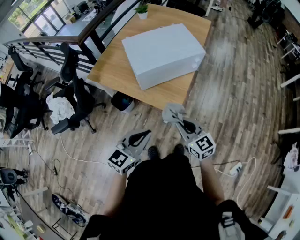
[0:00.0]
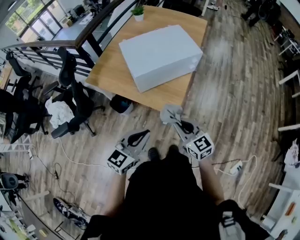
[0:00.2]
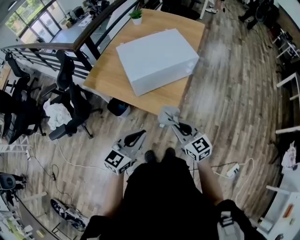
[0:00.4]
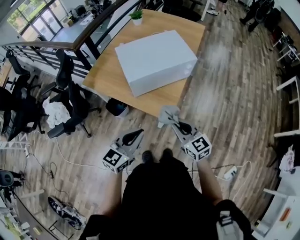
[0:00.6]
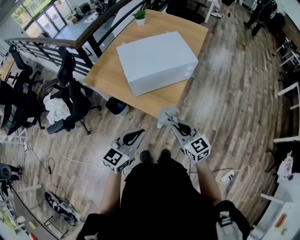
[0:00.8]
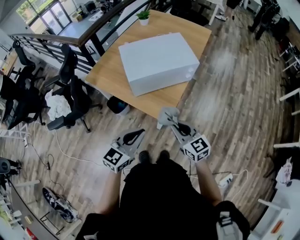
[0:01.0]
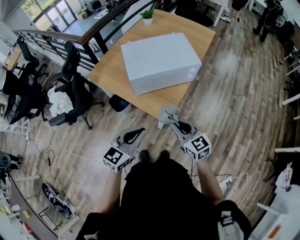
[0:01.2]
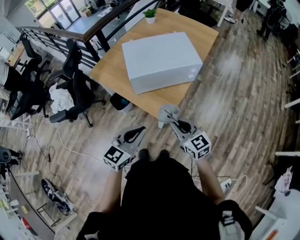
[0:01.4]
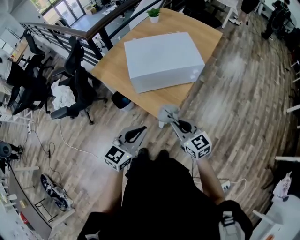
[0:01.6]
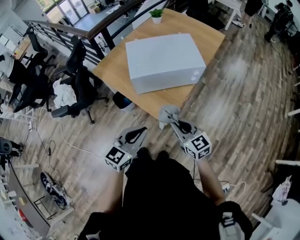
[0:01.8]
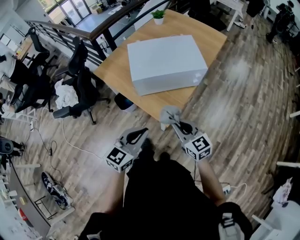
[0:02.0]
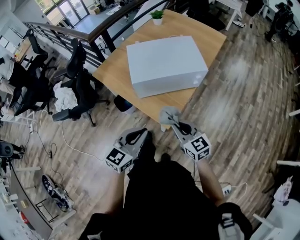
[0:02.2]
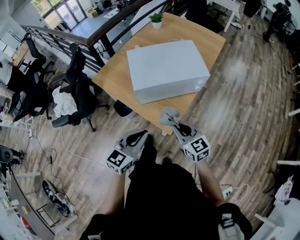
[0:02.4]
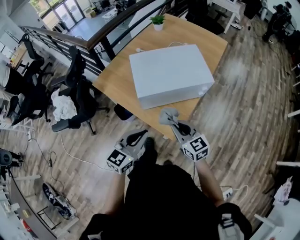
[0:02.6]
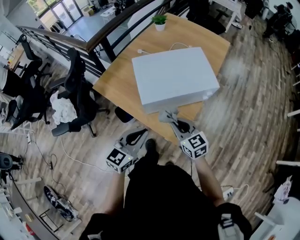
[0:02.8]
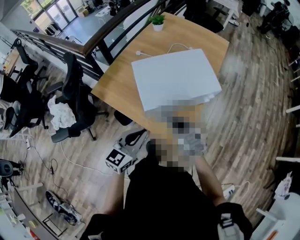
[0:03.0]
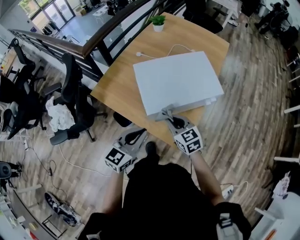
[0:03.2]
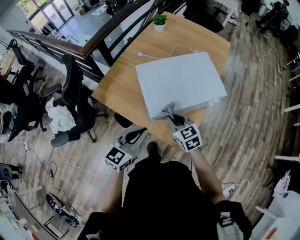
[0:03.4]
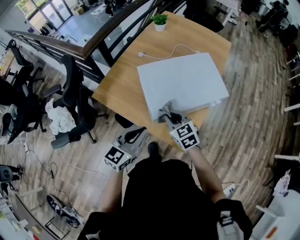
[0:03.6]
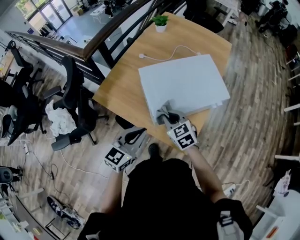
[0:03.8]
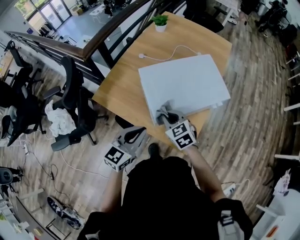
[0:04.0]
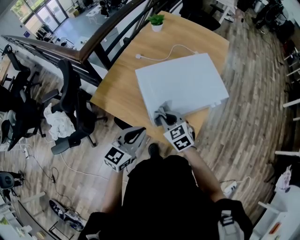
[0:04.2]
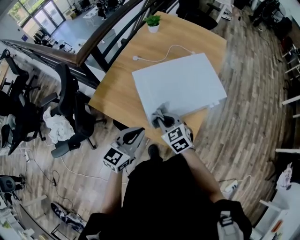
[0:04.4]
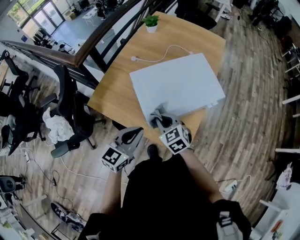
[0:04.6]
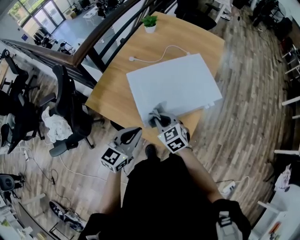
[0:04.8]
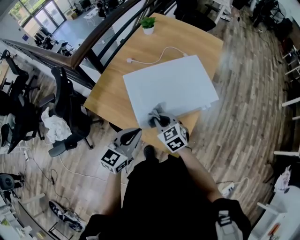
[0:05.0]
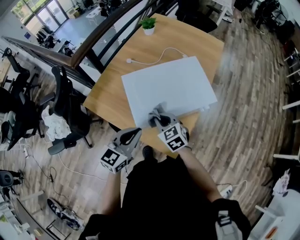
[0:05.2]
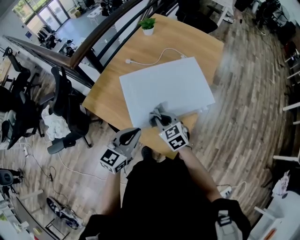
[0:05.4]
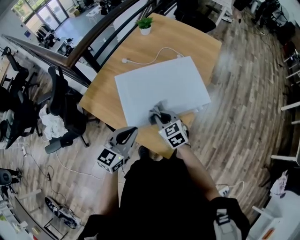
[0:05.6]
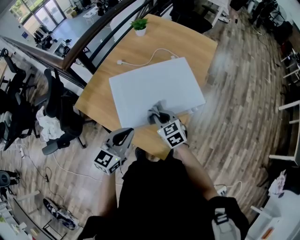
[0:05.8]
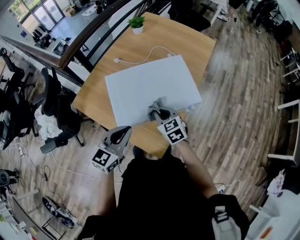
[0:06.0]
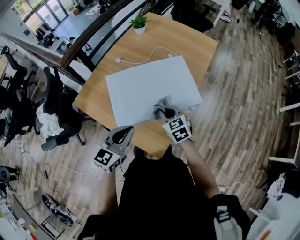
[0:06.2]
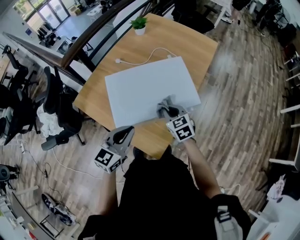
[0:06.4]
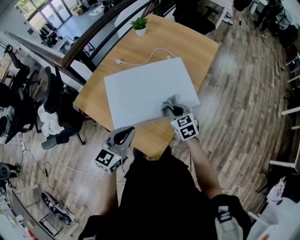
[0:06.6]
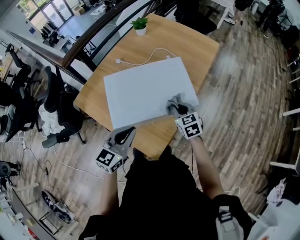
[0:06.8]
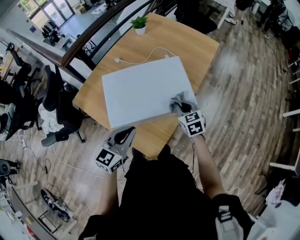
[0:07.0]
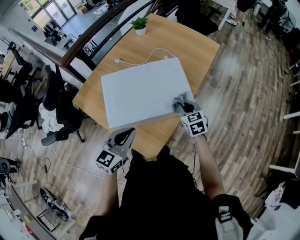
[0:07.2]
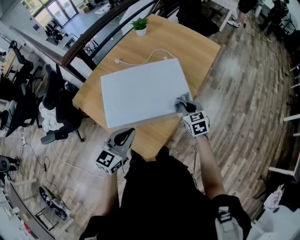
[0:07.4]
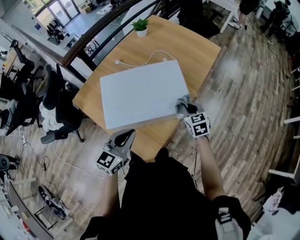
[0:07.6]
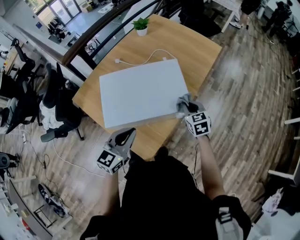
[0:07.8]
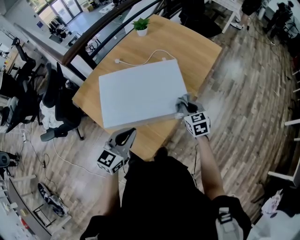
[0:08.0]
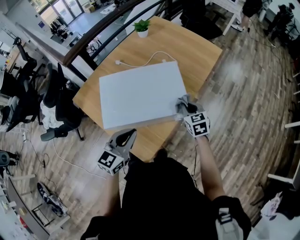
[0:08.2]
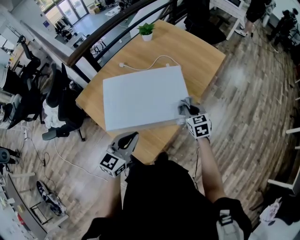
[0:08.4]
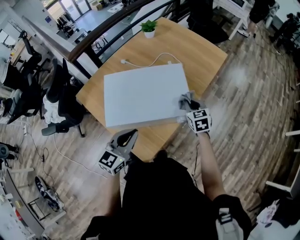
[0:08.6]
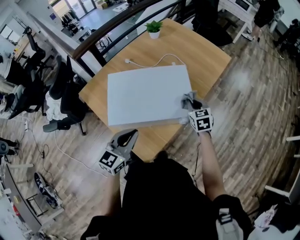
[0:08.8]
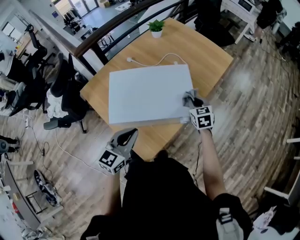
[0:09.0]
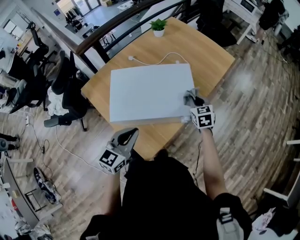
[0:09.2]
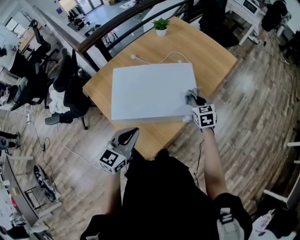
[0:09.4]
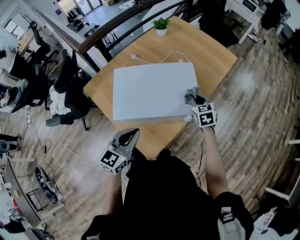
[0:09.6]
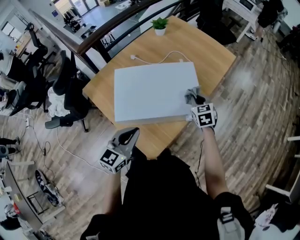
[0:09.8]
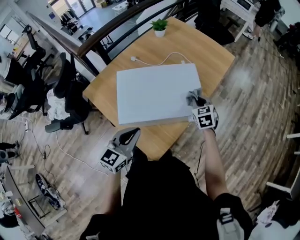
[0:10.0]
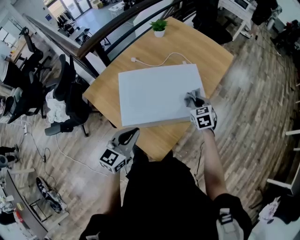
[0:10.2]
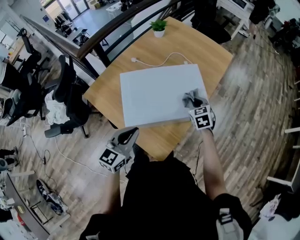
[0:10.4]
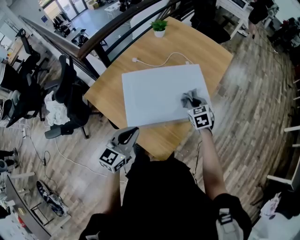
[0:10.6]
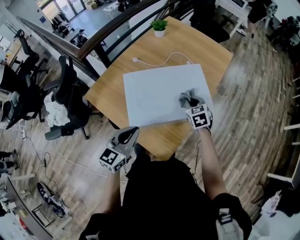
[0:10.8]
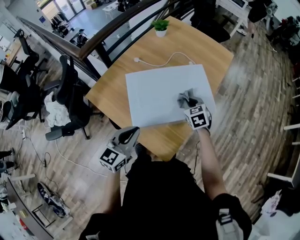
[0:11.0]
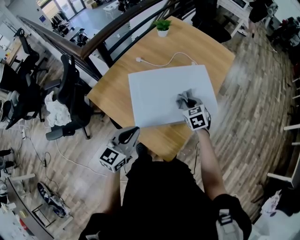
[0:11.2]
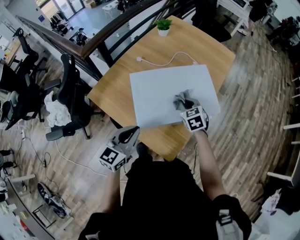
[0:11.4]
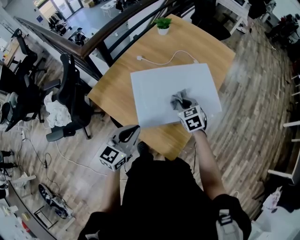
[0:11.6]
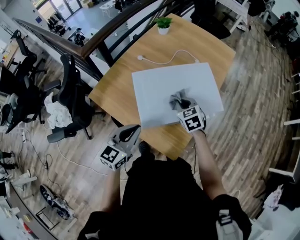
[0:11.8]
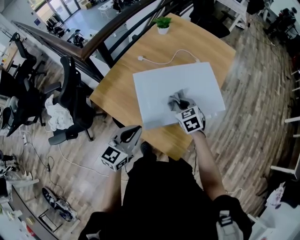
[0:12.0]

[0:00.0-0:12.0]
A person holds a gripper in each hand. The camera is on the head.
0:00.0 to 0:01.6: The two grippers go approximately 10 cm to the right.
0:01.6 to 0:03.0: Both grippers move forward and to the left, about 20 cm.
0:03.0 to 0:04.4: The right gripper goes roughly 10 cm to the left and forward, while the left gripper shifts roughly 10 cm forward and to the left.
0:04.4 to 0:06.0: The two grippers go about 15 cm to the right.
0:06.0 to 0:07.6: The left gripper travels to the right by about 10 cm; the right gripper is displaced to the right by some 20 cm.
0:07.6 to 0:09.0: The right gripper shifts approximately 5 cm forward.
0:09.0 to 0:10.4: Both grippers move to the left, about 10 cm.
0:10.4 to 0:12.0: The right gripper is displaced to the left by roughly 15 cm. Meanwhile the left gripper heads to the left, covering approximately 10 cm.

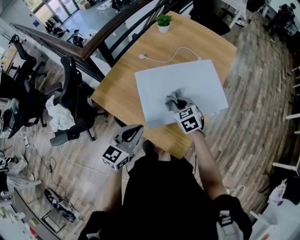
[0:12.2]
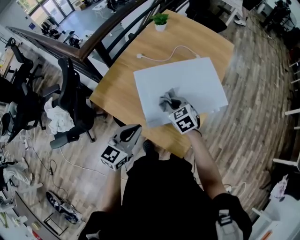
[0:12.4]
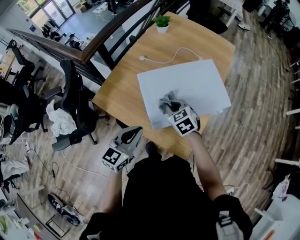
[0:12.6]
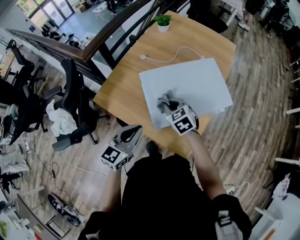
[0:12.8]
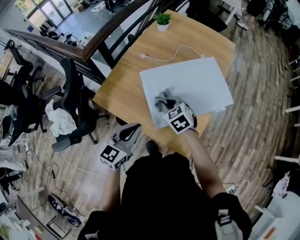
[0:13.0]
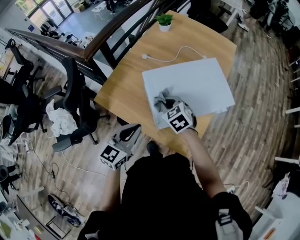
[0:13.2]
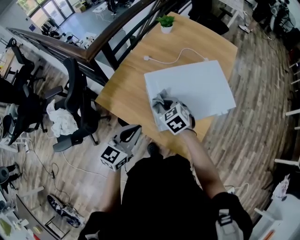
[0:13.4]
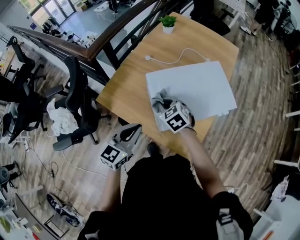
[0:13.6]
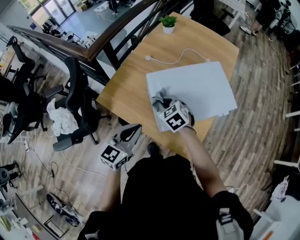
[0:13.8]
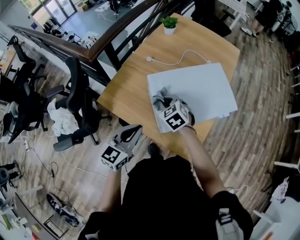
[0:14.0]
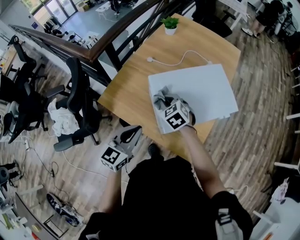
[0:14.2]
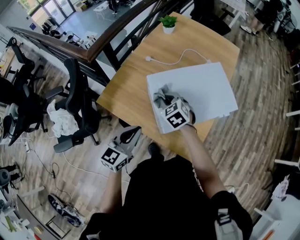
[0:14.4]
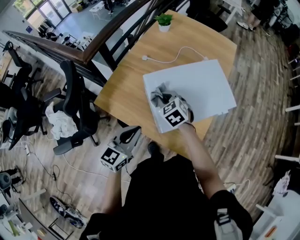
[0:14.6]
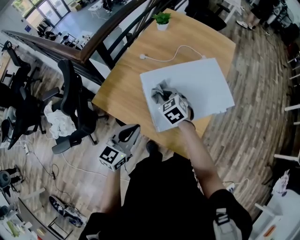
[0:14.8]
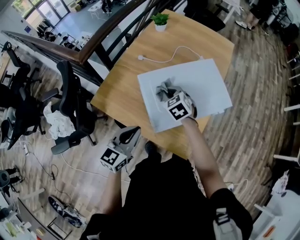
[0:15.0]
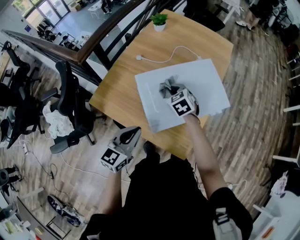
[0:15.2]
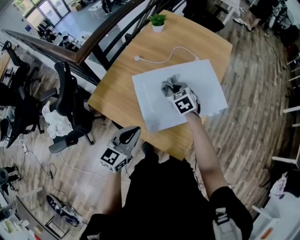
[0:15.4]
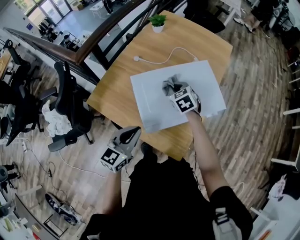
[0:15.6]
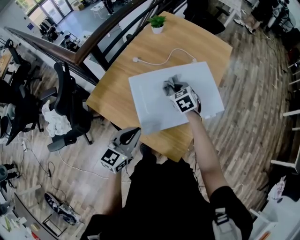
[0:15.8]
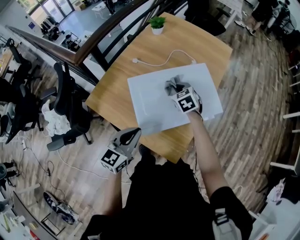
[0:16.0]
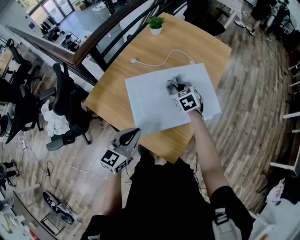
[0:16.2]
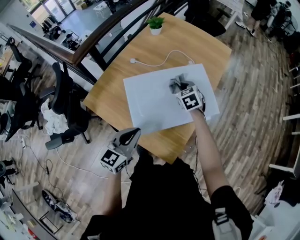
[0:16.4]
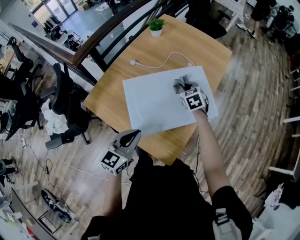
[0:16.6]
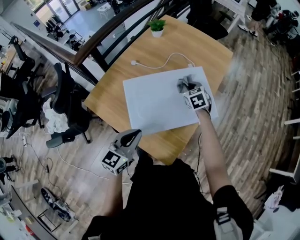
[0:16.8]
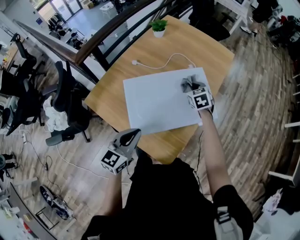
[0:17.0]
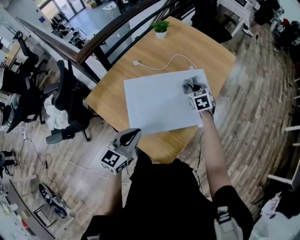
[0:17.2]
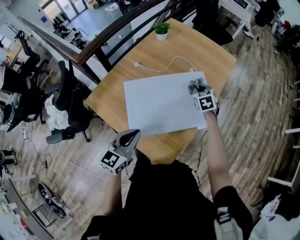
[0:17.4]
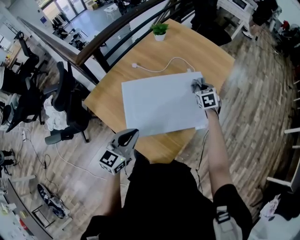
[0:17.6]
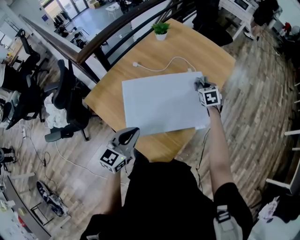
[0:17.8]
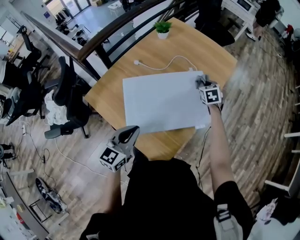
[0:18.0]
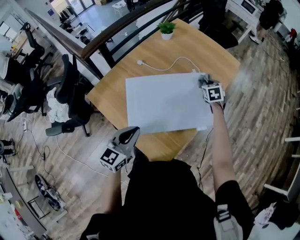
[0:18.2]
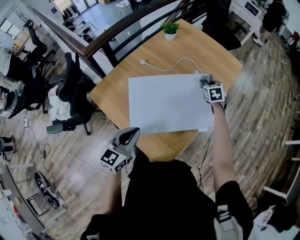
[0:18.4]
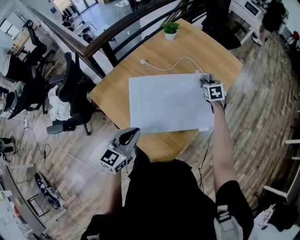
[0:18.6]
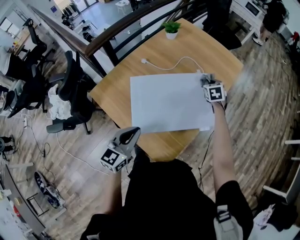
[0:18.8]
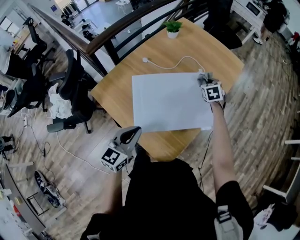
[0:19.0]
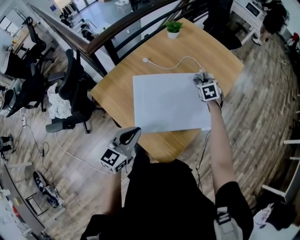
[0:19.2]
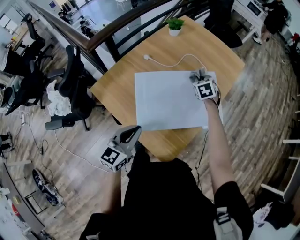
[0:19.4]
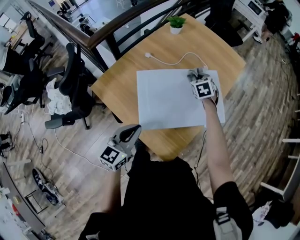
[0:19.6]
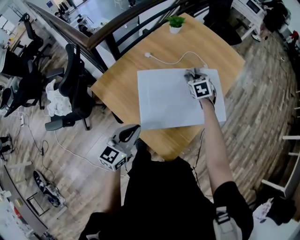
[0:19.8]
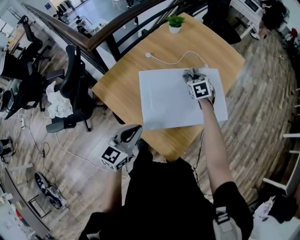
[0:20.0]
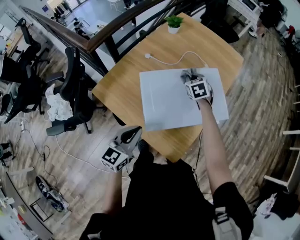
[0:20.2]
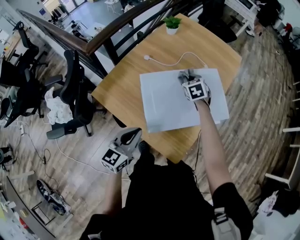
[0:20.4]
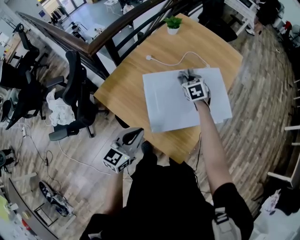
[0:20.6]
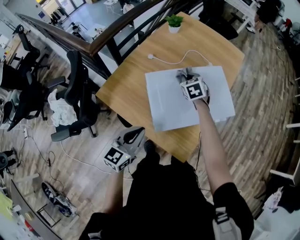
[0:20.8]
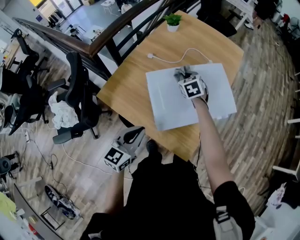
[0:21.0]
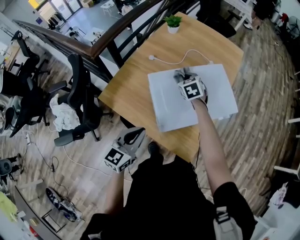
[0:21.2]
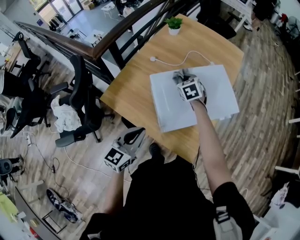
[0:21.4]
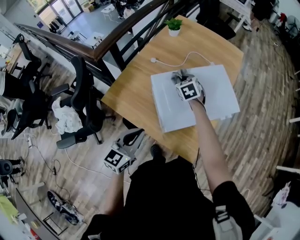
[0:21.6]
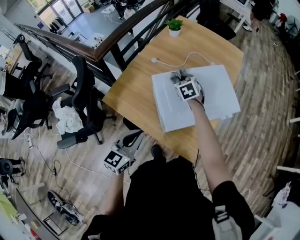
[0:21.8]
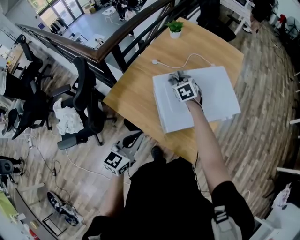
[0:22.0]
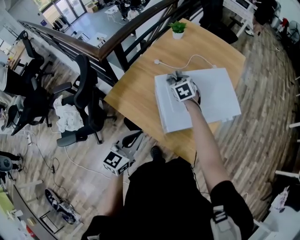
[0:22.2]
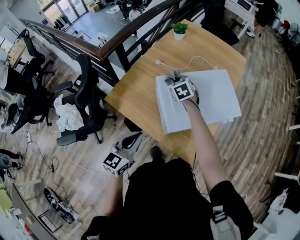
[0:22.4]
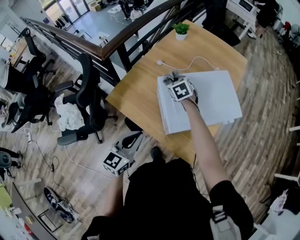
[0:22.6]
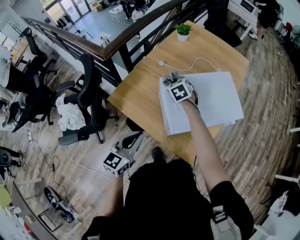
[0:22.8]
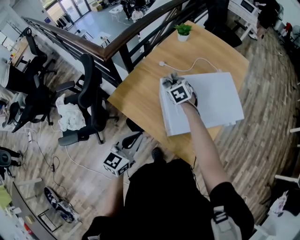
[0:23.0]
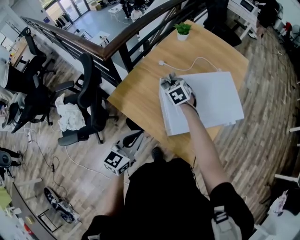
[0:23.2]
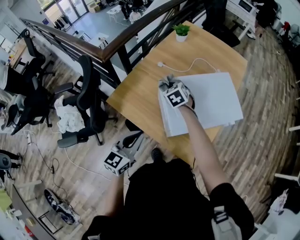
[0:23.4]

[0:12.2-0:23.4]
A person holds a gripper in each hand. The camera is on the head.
0:12.2 to 0:13.8: The right gripper moves to the left, about 15 cm; the left gripper goes about 10 cm to the left.
0:13.8 to 0:15.4: The left gripper heads to the right, covering some 5 cm; the right gripper heads to the right and forward, covering some 15 cm.
0:15.4 to 0:17.0: The left gripper goes some 10 cm to the right. Meanwhile the right gripper is displaced to the right and forward by about 15 cm.
0:17.0 to 0:18.6: The right gripper shifts roughly 10 cm forward and to the right.
0:18.6 to 0:20.2: The right gripper is displaced to the left and backward by about 20 cm. Meanwhile the left gripper travels to the left by about 5 cm.
0:20.2 to 0:21.8: The left gripper goes about 5 cm to the left. The right gripper is displaced to the left and backward by some 10 cm.
0:21.8 to 0:23.4: The right gripper travels to the left by about 10 cm.

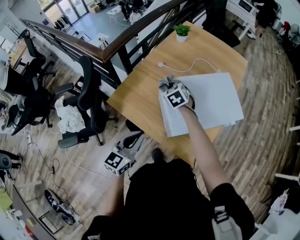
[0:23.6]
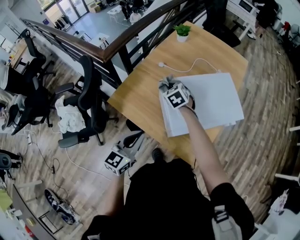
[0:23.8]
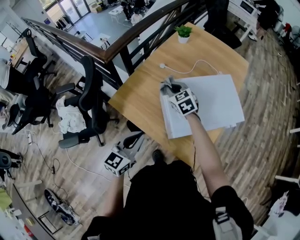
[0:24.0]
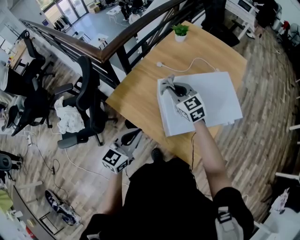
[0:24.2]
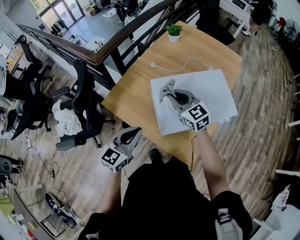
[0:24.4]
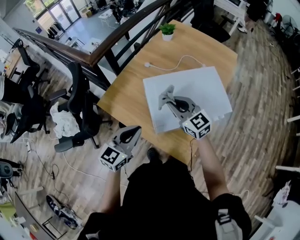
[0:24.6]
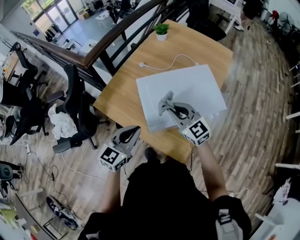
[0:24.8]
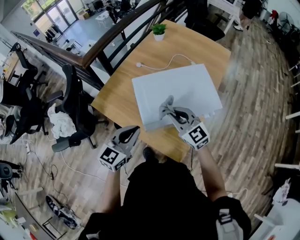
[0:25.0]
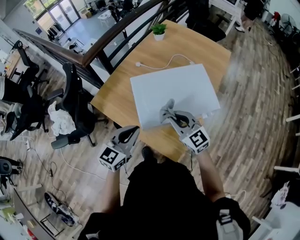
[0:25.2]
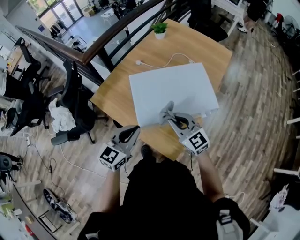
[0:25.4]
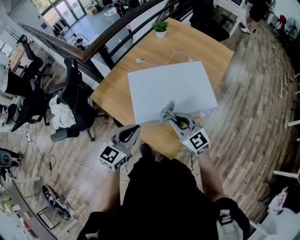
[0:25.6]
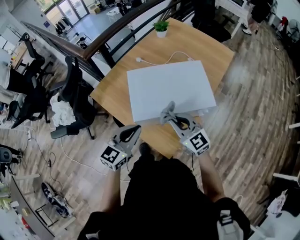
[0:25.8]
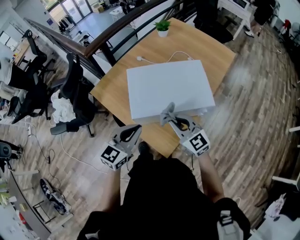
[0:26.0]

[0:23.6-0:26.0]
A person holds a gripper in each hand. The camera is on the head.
0:23.6 to 0:24.8: The left gripper shifts approximately 10 cm to the right. Meanwhile the right gripper is displaced backward, to the right and upward by approximately 25 cm, and swivels about 30 degrees.
0:24.8 to 0:26.0: The grippers both shift to the right and backward by approximately 15 cm.
